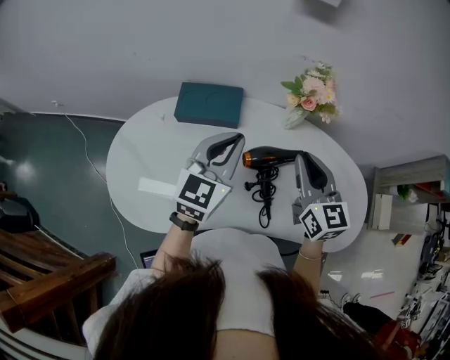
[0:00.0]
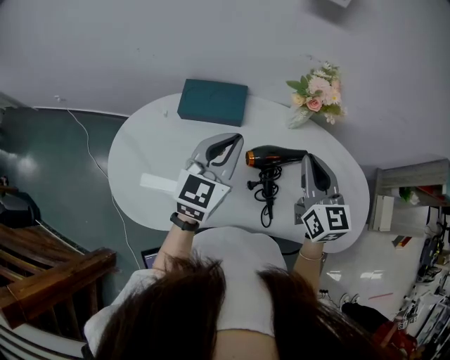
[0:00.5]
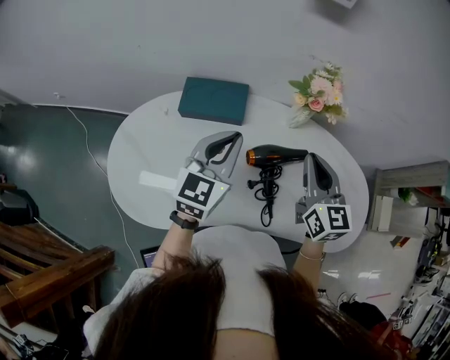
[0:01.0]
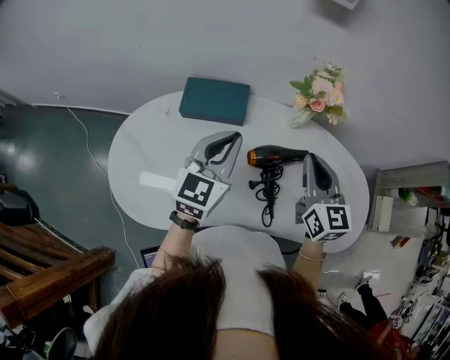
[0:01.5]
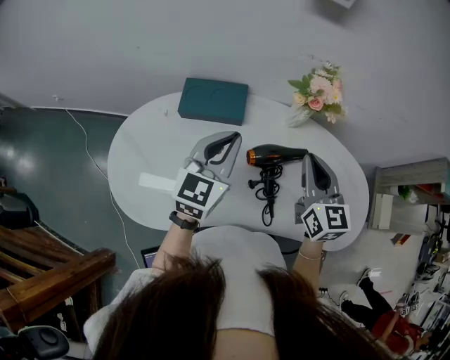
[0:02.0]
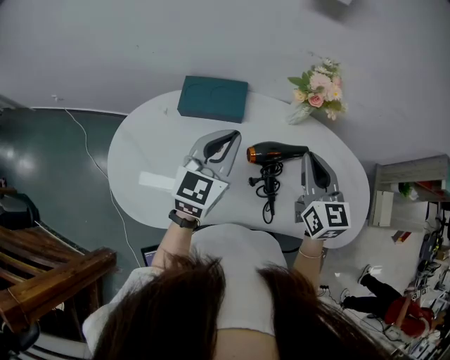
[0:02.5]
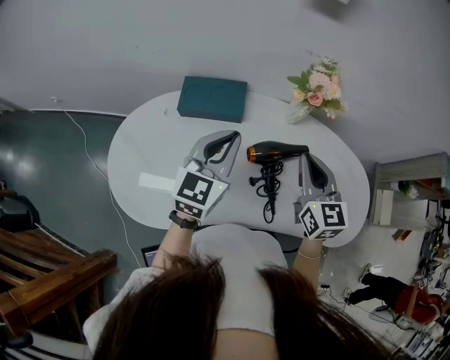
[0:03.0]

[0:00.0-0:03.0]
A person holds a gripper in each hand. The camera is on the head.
0:00.0 to 0:03.0: The grippers move only a little.

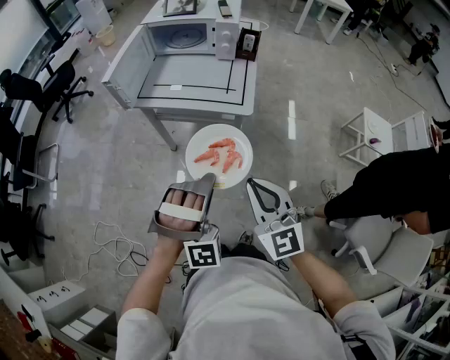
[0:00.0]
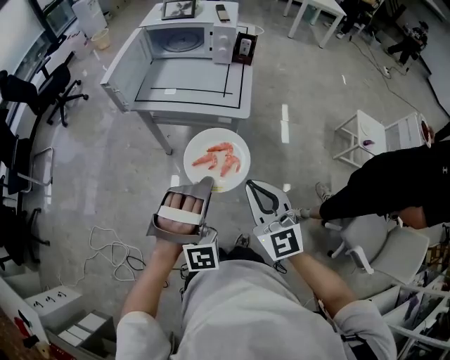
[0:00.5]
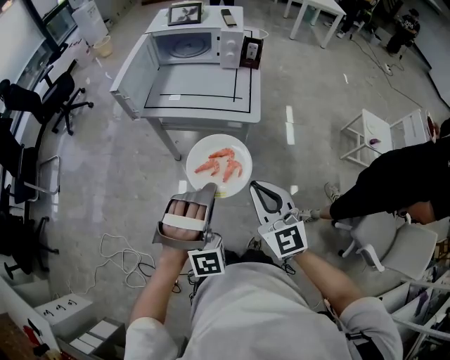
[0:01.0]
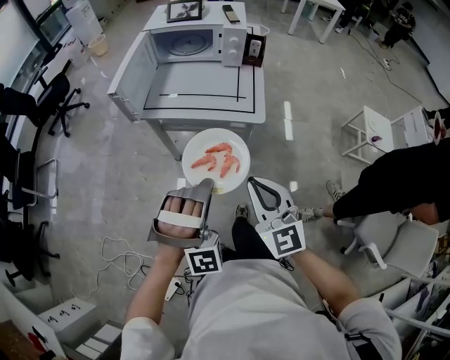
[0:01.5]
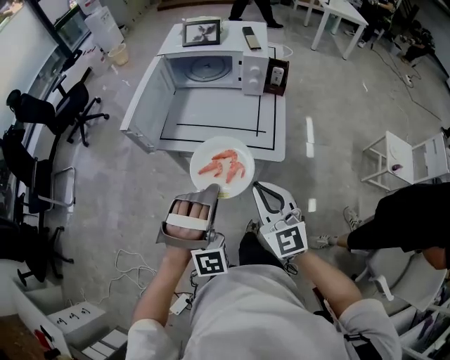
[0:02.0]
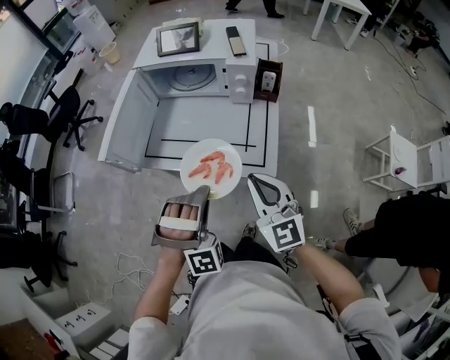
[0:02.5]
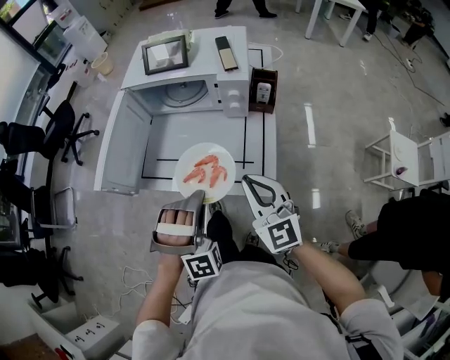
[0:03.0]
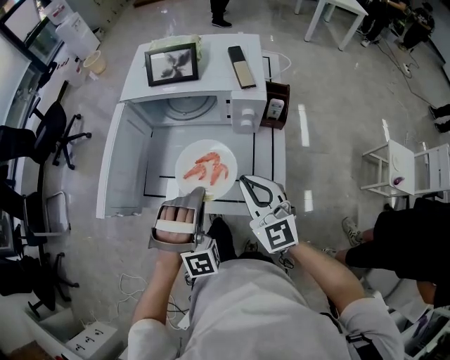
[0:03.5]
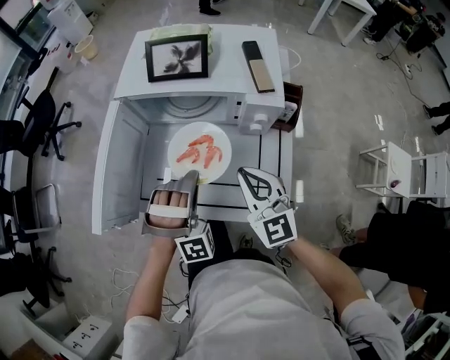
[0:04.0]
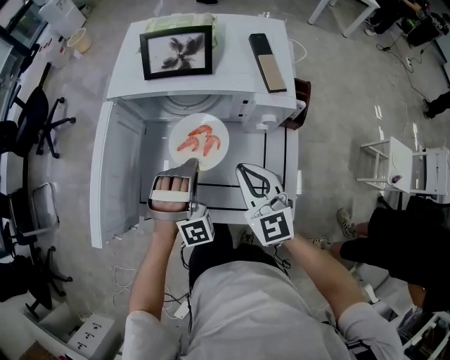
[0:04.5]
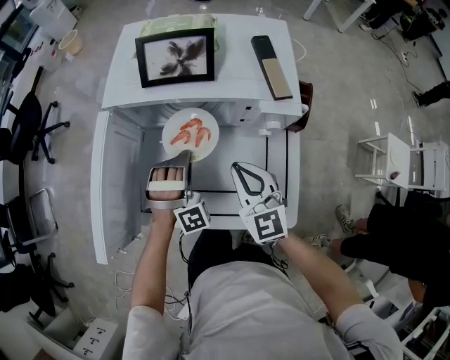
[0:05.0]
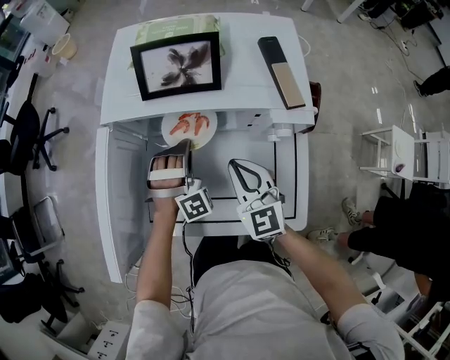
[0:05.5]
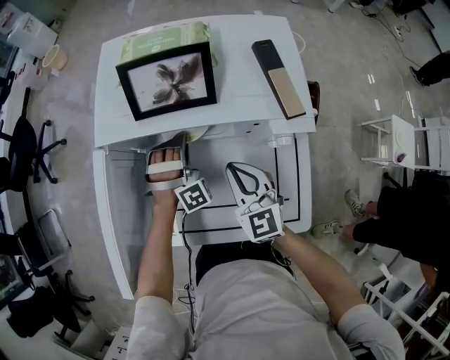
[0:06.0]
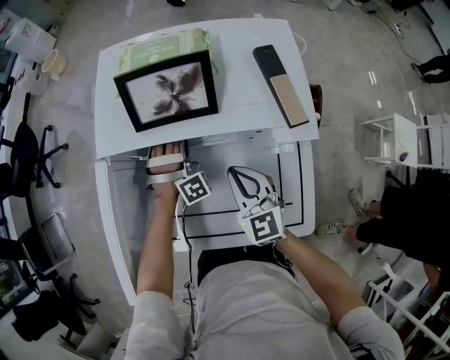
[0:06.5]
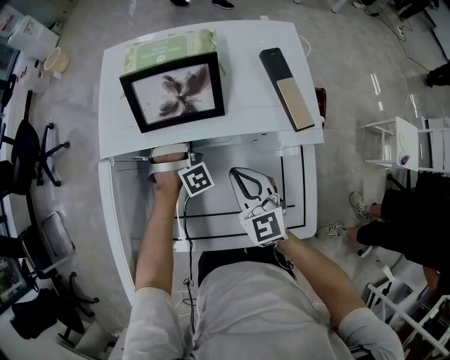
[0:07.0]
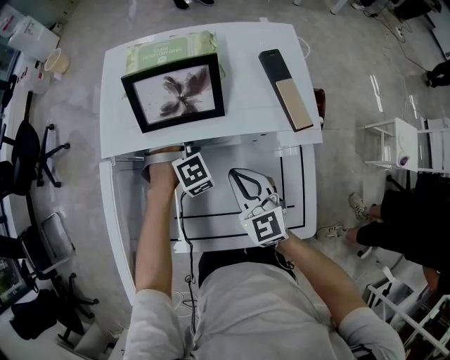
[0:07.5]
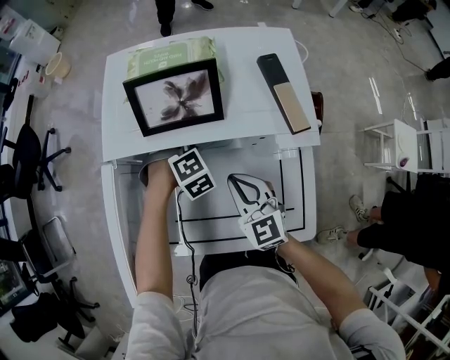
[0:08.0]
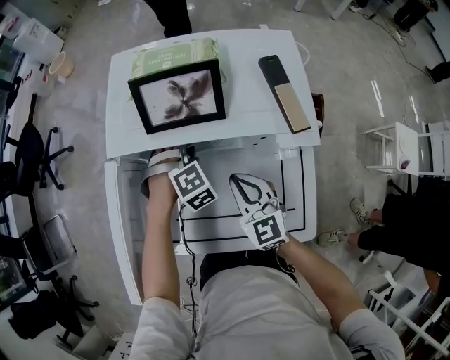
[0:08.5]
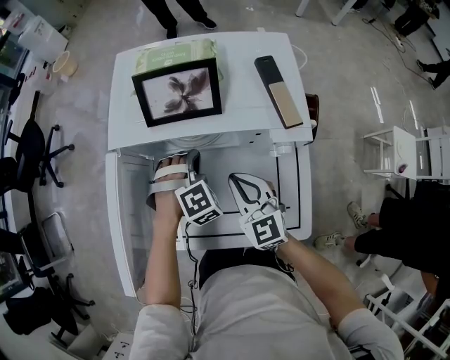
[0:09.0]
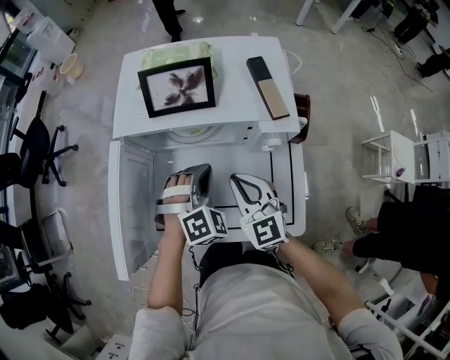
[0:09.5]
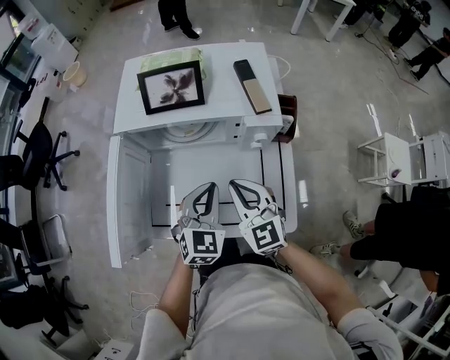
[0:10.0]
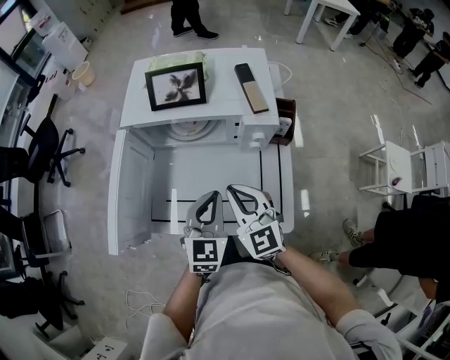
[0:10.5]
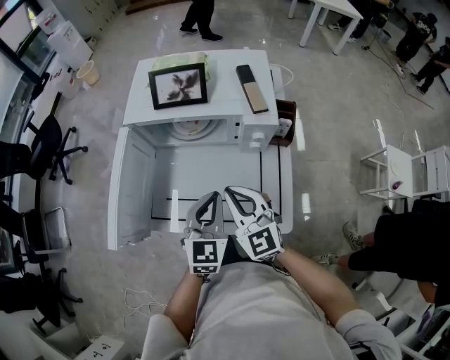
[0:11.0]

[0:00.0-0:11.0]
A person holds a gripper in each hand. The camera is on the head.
0:00.0 to 0:02.0: The right gripper ends up about 20 cm from where it was.
0:02.0 to 0:03.5: The right gripper ends up about 25 cm from where it was.
0:03.5 to 0:05.5: The right gripper ends up some 20 cm from where it was.
0:09.0 to 0:11.0: The right gripper changes place by roughly 15 cm.

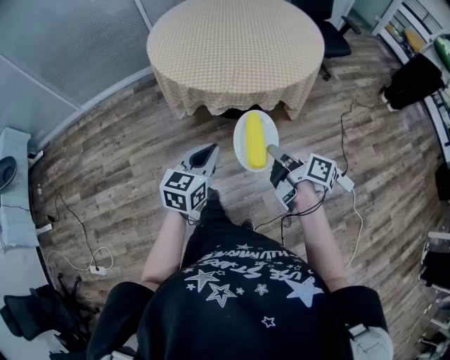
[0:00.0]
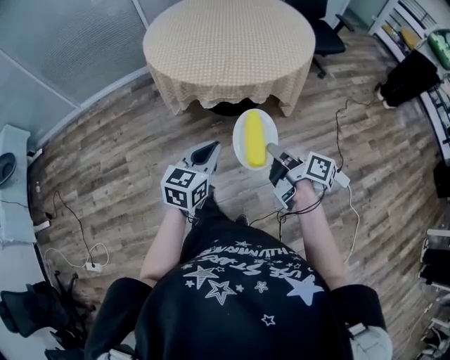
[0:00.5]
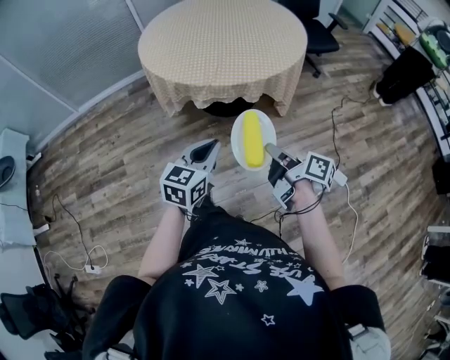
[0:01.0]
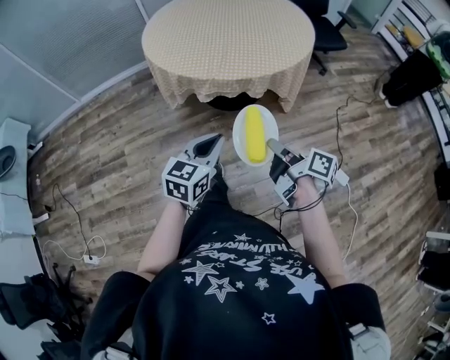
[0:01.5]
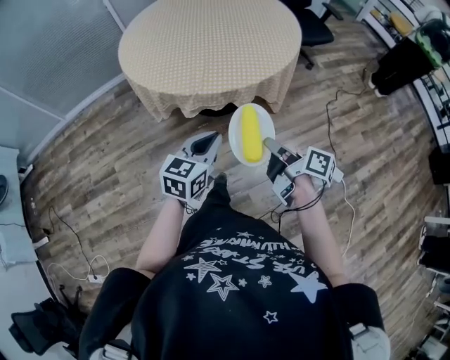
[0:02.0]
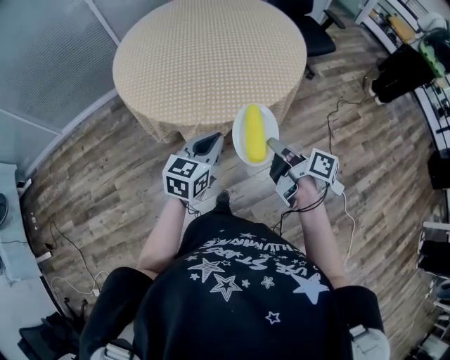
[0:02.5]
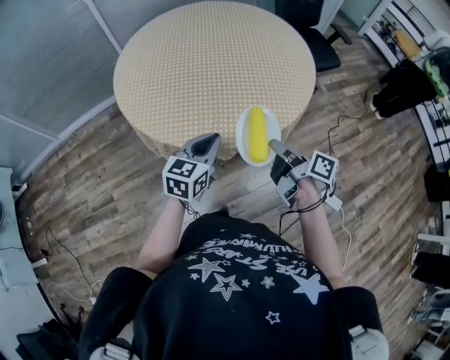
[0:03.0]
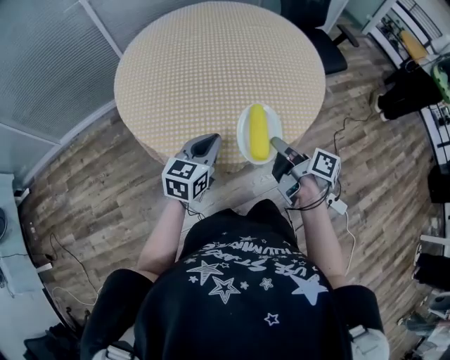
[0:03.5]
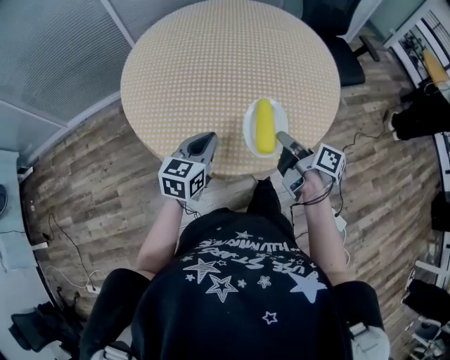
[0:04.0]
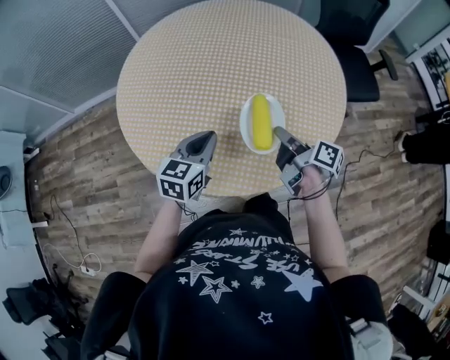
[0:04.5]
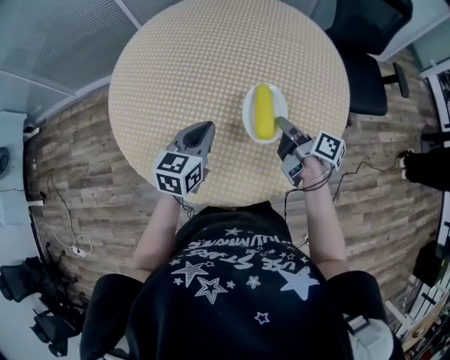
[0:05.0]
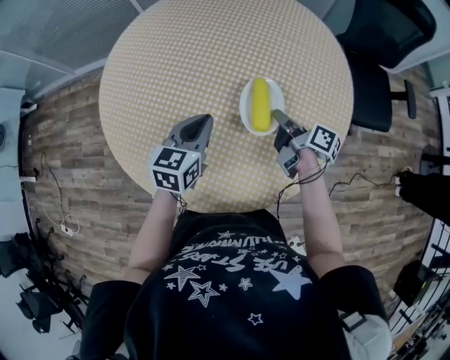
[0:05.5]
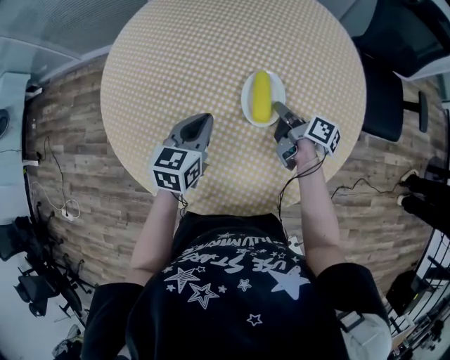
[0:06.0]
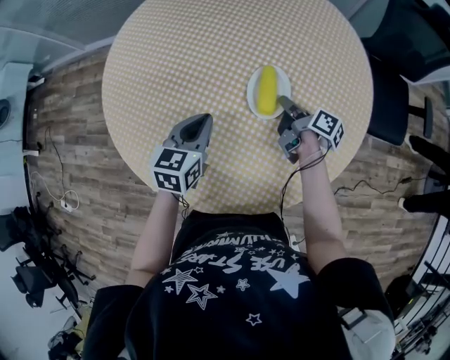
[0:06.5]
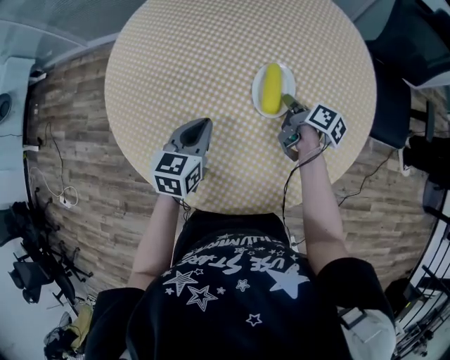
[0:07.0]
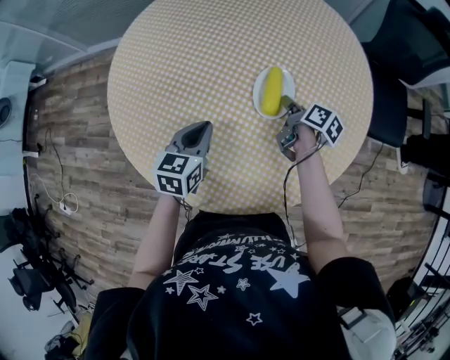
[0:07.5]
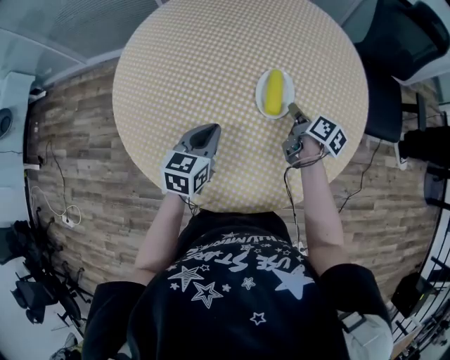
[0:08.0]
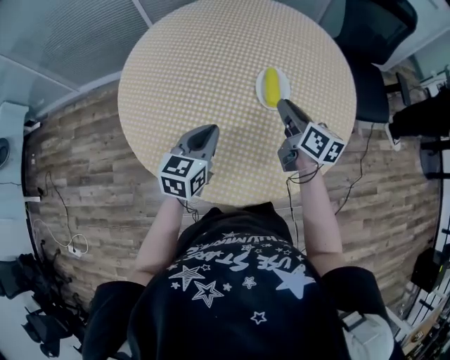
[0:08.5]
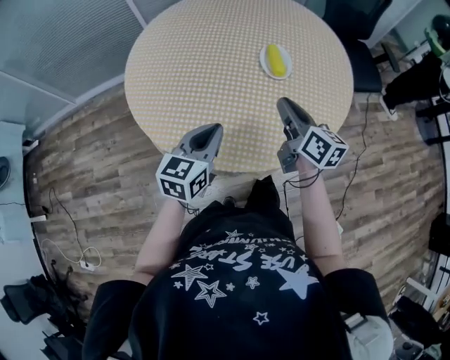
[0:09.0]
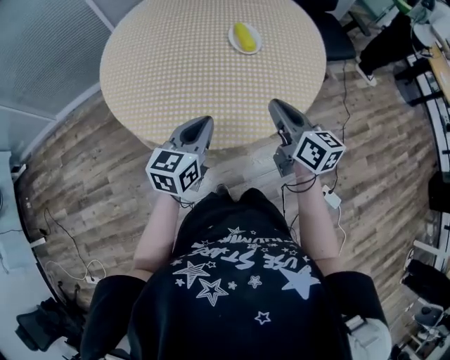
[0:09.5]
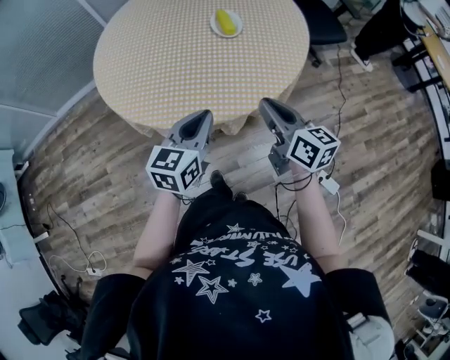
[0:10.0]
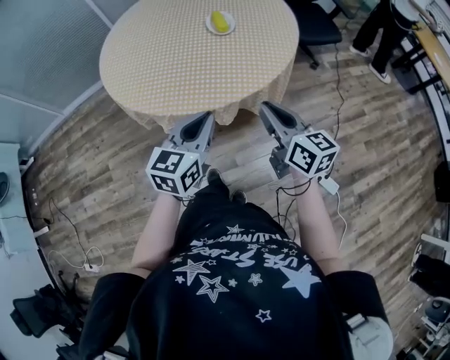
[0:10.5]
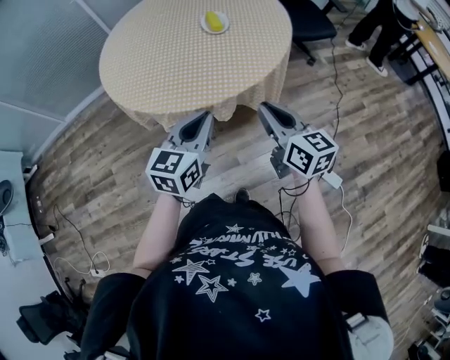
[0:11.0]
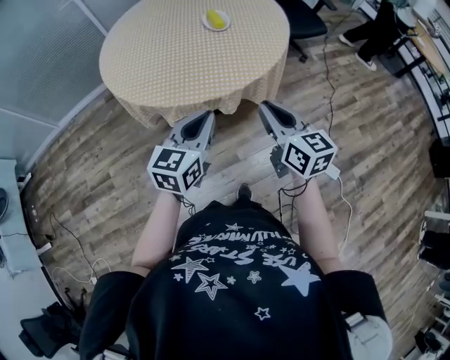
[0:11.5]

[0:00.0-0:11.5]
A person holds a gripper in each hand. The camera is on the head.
0:00.0 to 0:02.0: The right gripper goes about 5 cm to the right, and travels backward and back again, about 5 cm each way. The left gripper shifts approximately 10 cm to the right and forward.
0:02.0 to 0:04.0: Both grippers travel together forward, some 35 cm.
0:04.0 to 0:06.0: Both grippers move forward and to the right, some 30 cm. The right gripper changes its angle by roughly 20 degrees. The left gripper rotates roughly 30 degrees.
0:06.0 to 0:07.5: The left gripper shifts by approximately 5 cm.
0:07.5 to 0:09.5: The left gripper travels backward by roughly 20 cm, and swivels roughly 30 degrees; the right gripper travels backward and upward by approximately 40 cm, and turns by roughly 40 degrees.
0:09.5 to 0:11.5: Both grippers move backward, roughly 20 cm.

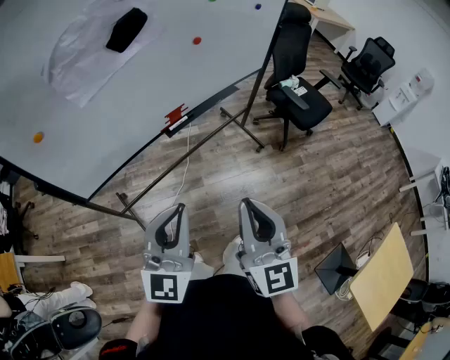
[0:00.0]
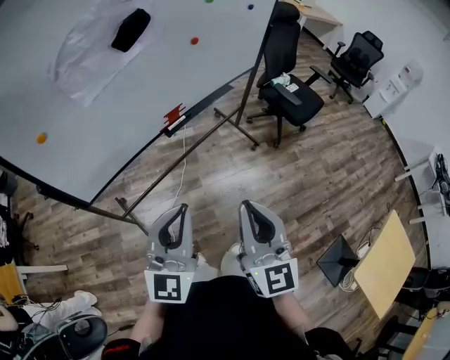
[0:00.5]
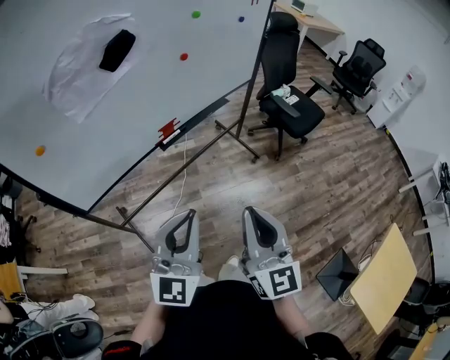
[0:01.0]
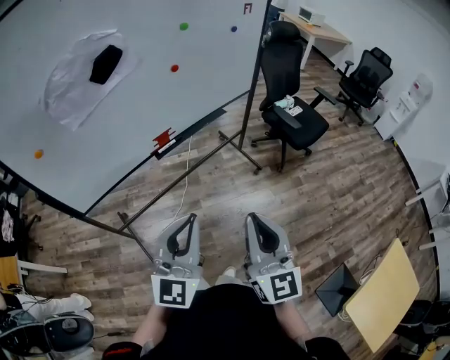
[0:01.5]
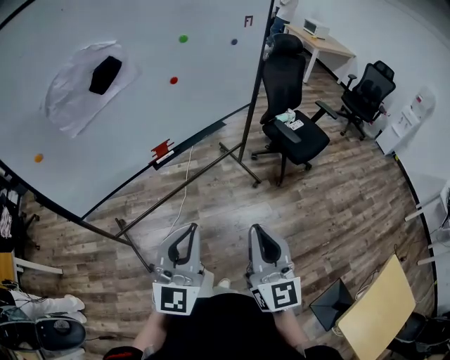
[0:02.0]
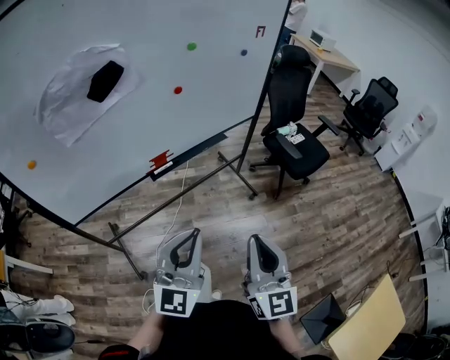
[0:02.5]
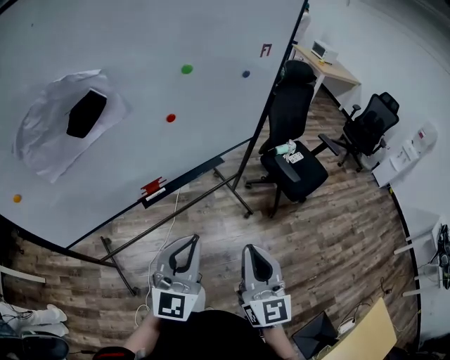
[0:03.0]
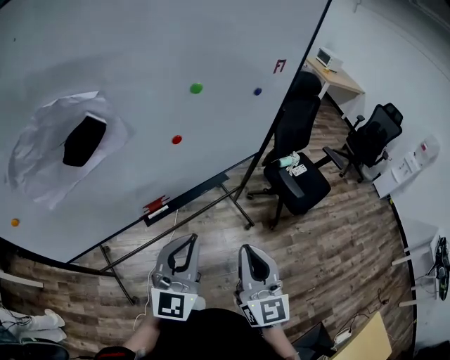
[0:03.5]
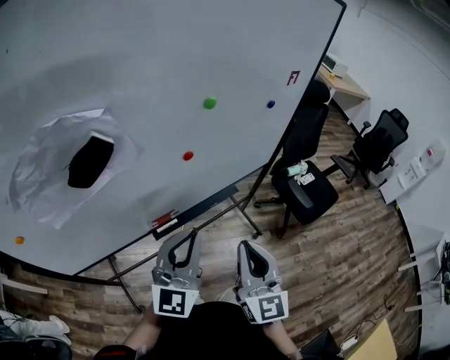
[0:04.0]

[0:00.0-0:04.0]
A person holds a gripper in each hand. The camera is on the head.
0:00.0 to 0:02.0: The two grippers go some 15 cm to the right.
0:02.0 to 0:04.0: The grippers both shift forward by approximately 30 cm.
